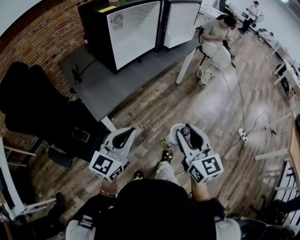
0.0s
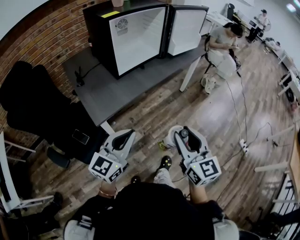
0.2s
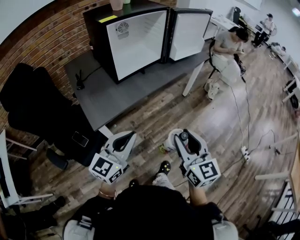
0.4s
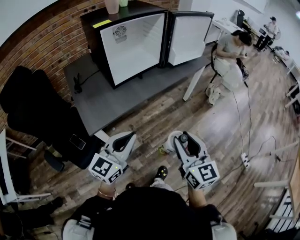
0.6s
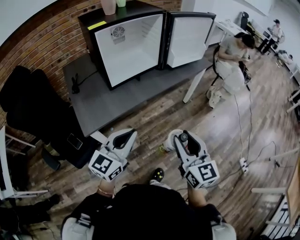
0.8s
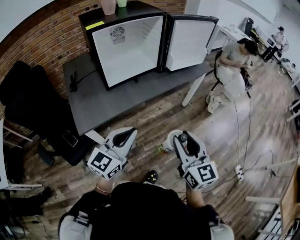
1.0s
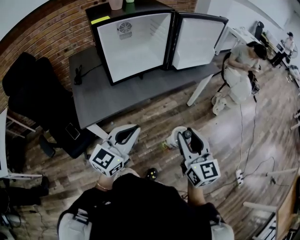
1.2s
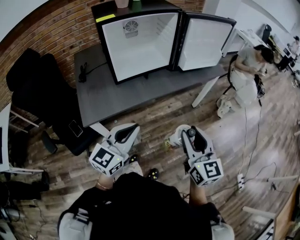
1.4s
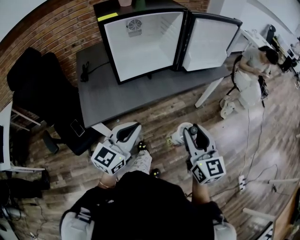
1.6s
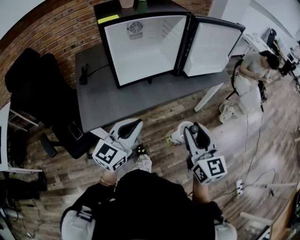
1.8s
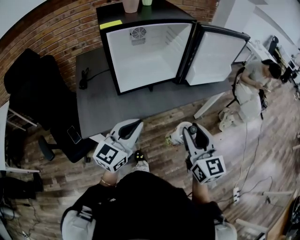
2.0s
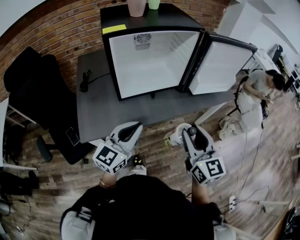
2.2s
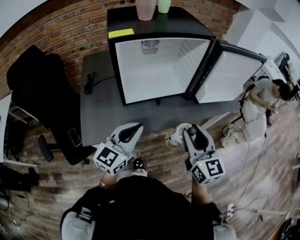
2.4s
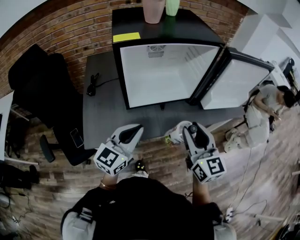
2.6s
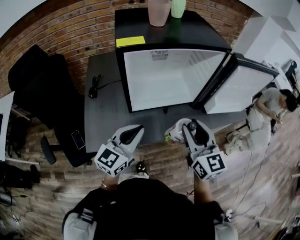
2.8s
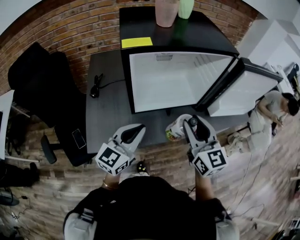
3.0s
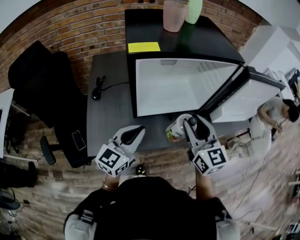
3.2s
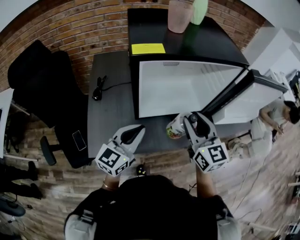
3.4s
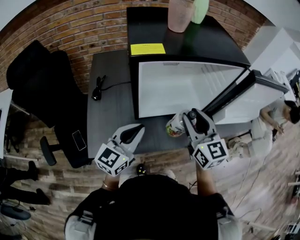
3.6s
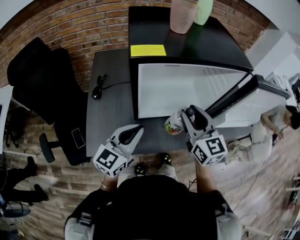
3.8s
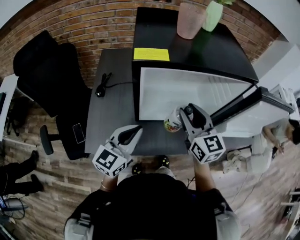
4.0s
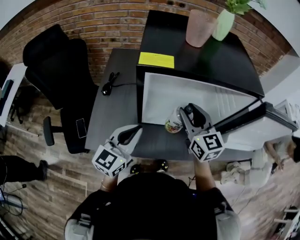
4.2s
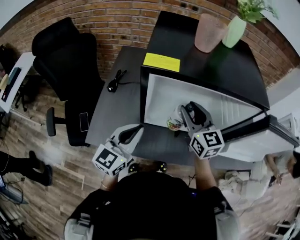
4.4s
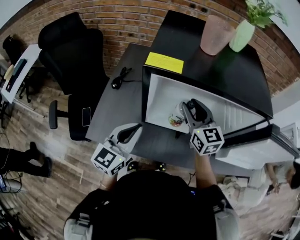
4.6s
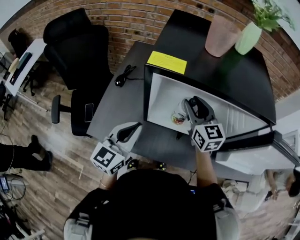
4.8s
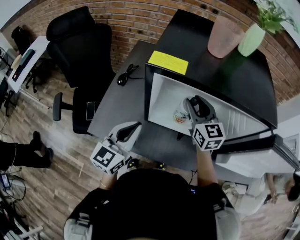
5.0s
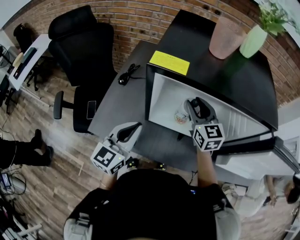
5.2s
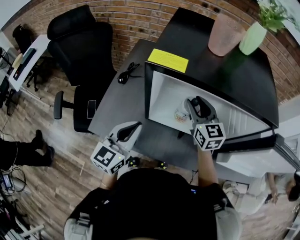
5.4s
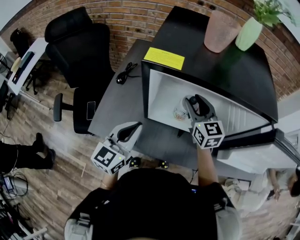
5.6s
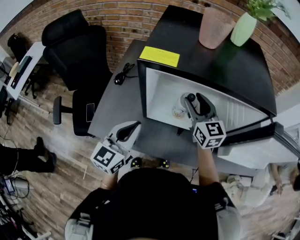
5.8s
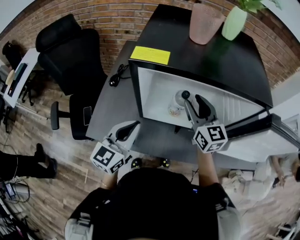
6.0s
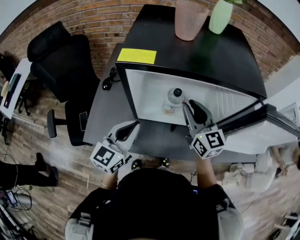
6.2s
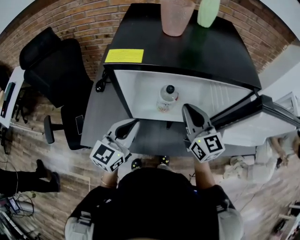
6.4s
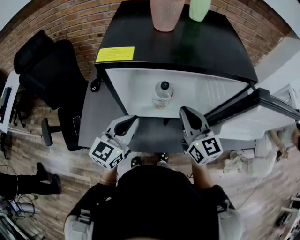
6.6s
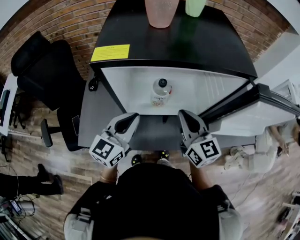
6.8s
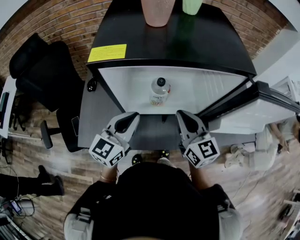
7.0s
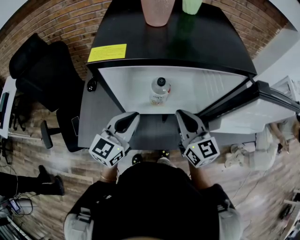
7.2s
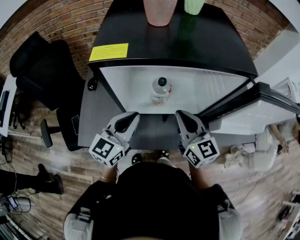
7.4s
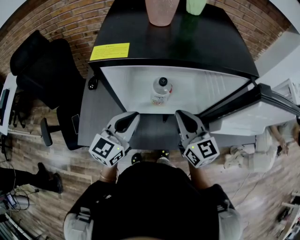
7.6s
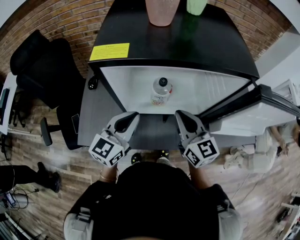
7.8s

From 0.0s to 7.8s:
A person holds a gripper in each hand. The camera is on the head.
From 0.0s to 1.6s: The two grippers go roughly 25 cm forward and to the right.
From 1.6s to 3.2s: Both grippers travel together forward and to the left, about 30 cm.
From 3.2s to 4.6s: The right gripper is displaced forward by approximately 20 cm, and turns by approximately 20 degrees. The left gripper moves about 5 cm, and turns by approximately 20 degrees.
From 4.6s to 6.2s: The right gripper changes place by approximately 5 cm.
From 6.2s to 7.8s: The right gripper goes about 5 cm backward, and closes its fingers; the left gripper changes place by approximately 5 cm.

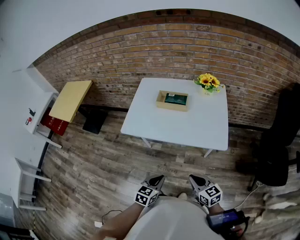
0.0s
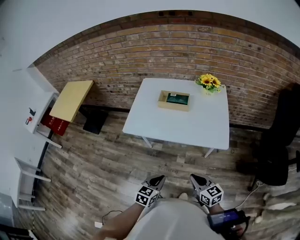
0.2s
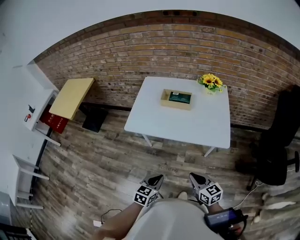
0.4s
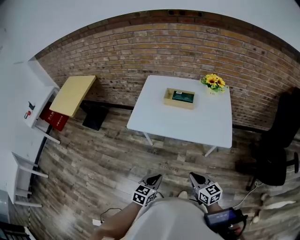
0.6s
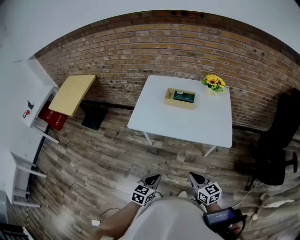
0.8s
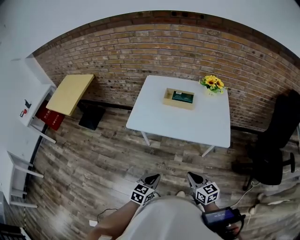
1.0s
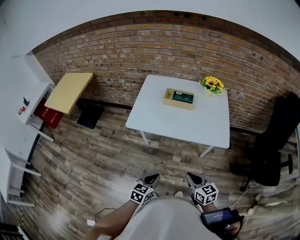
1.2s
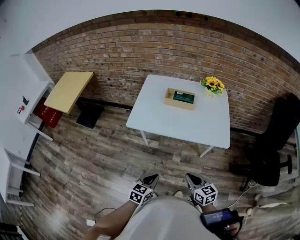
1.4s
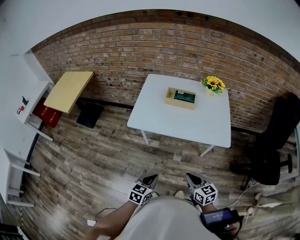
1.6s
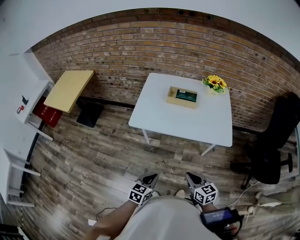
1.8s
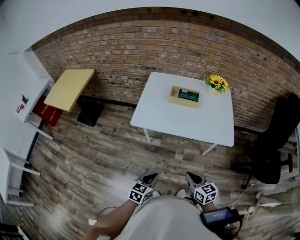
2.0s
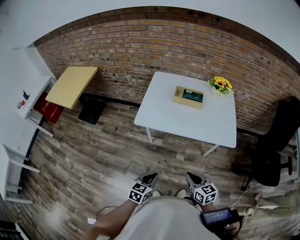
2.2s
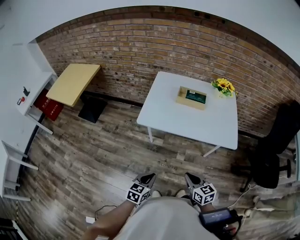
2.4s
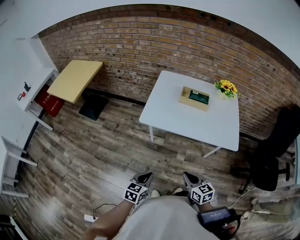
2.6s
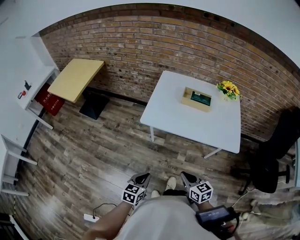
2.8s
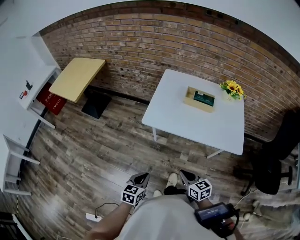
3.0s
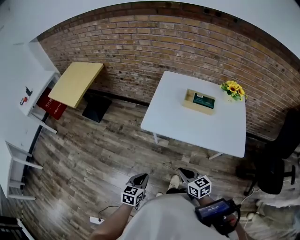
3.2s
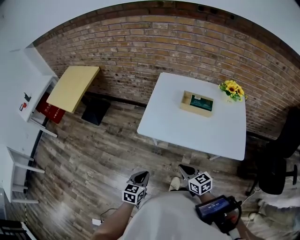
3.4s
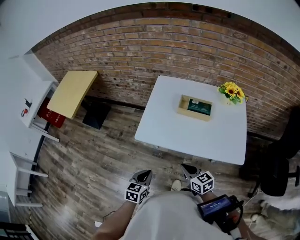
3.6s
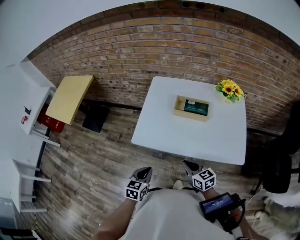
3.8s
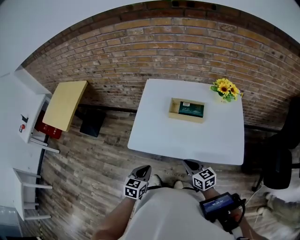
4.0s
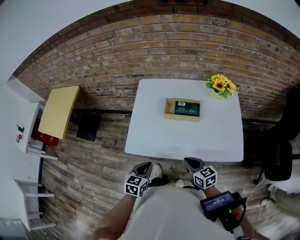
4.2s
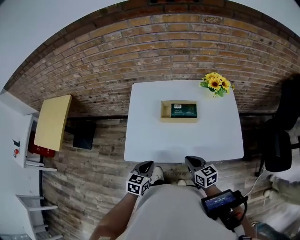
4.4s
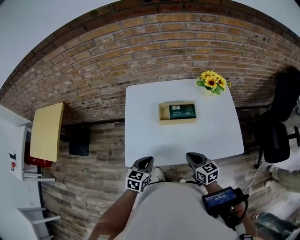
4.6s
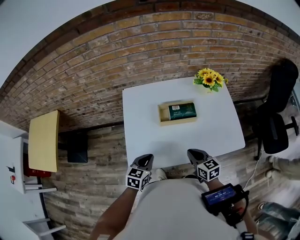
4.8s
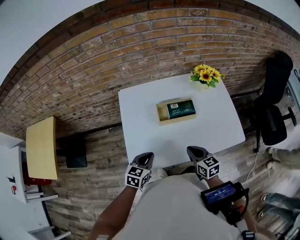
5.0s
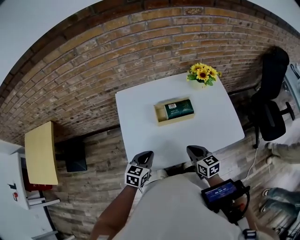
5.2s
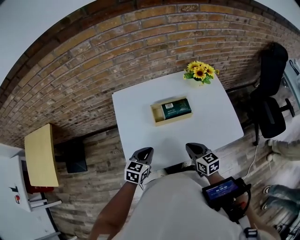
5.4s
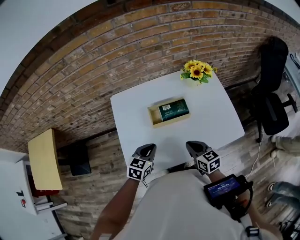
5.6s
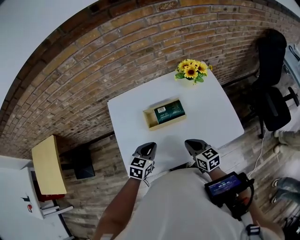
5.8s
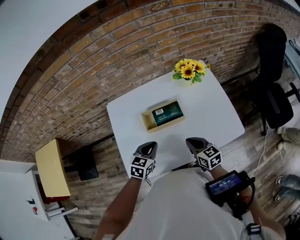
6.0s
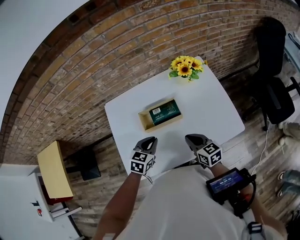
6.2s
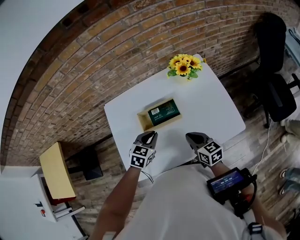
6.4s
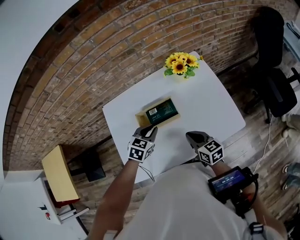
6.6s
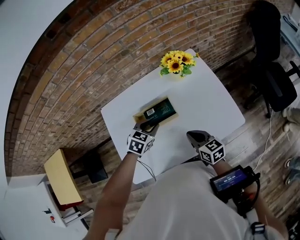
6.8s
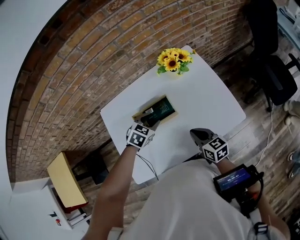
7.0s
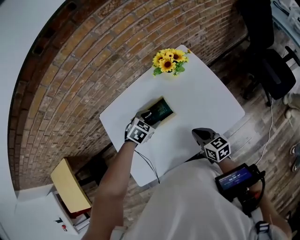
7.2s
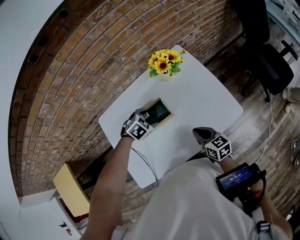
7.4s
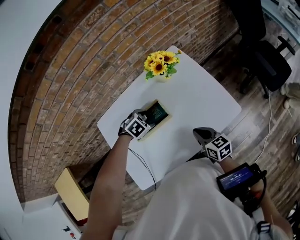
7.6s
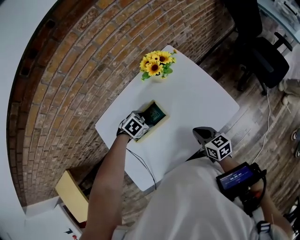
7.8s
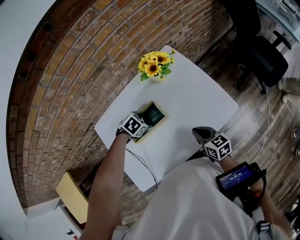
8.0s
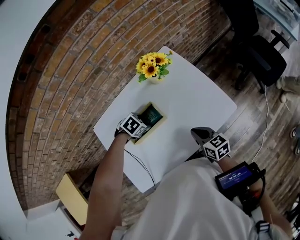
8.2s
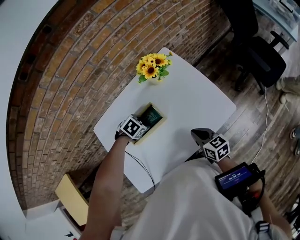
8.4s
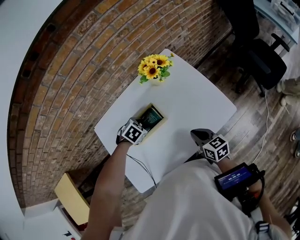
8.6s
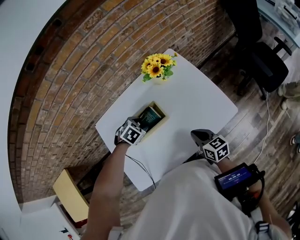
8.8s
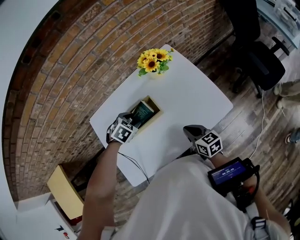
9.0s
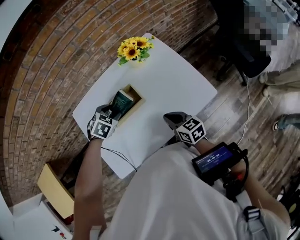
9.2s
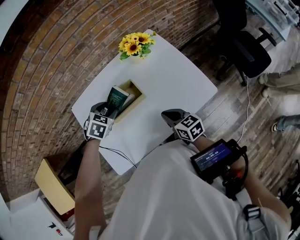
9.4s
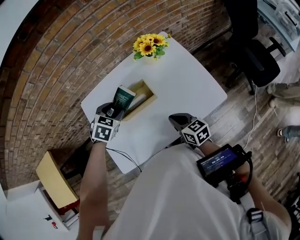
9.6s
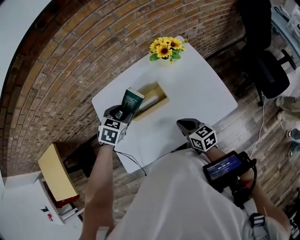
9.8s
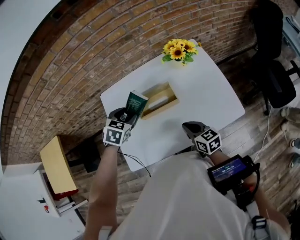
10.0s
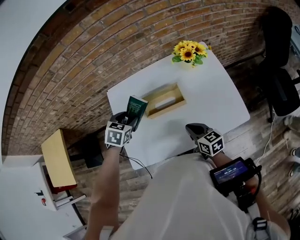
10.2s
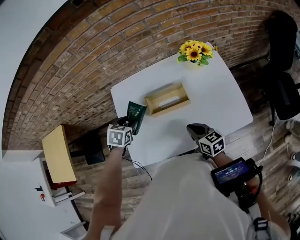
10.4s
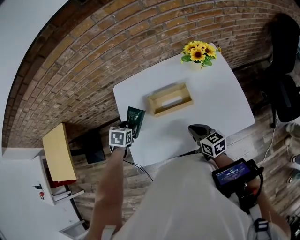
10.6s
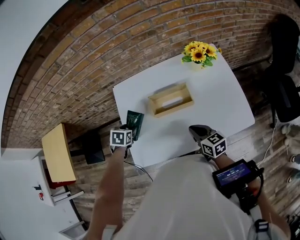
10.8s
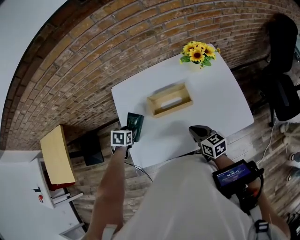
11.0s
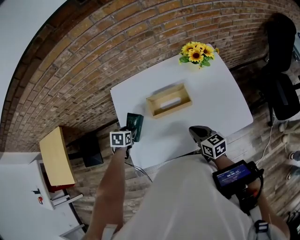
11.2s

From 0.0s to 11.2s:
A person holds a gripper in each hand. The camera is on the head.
From 0.0s to 1.6s: The grippers both shift to the left by about 10 cm.
From 1.6s to 3.2s: The left gripper goes roughly 15 cm to the left, while the right gripper shifts approximately 15 cm to the left and forward.
From 3.2s to 4.8s: The right gripper moves roughly 25 cm, and rotates some 30 degrees; the left gripper shifts by some 35 cm, and turns by roughly 30 degrees.
From 4.8s to 6.4s: The left gripper shifts some 20 cm forward and to the right, and rotates about 20 degrees. Meanwhile the right gripper moves forward and to the right, roughly 10 cm.
From 6.4s to 8.0s: The right gripper moves approximately 10 cm; the left gripper moves about 15 cm, angles its fingers downward, by about 30 degrees, and opens its fingers.
From 8.0s to 9.6s: The left gripper travels upward by some 10 cm, and swivels approximately 30 degrees. Meanwhile the right gripper moves some 5 cm.
From 9.6s to 11.2s: The left gripper moves to the left and downward, roughly 25 cm, and twists some 40 degrees counterclockwise, seen from behind, while the right gripper heads to the left, covering about 5 cm.

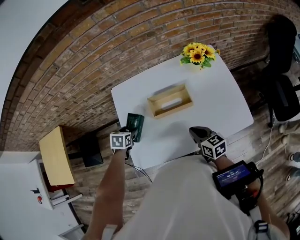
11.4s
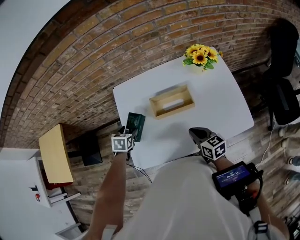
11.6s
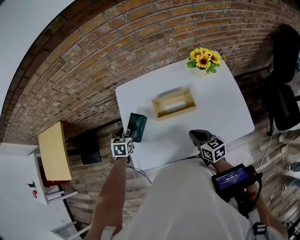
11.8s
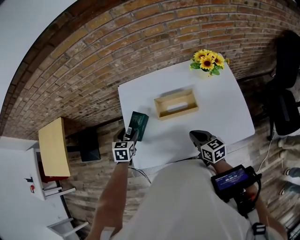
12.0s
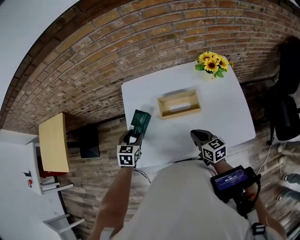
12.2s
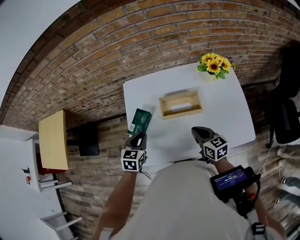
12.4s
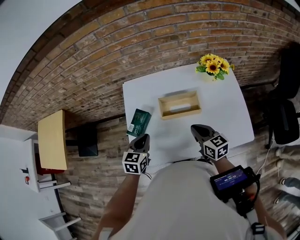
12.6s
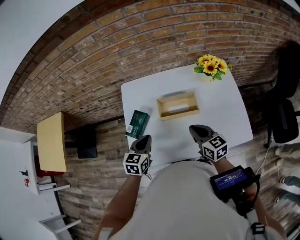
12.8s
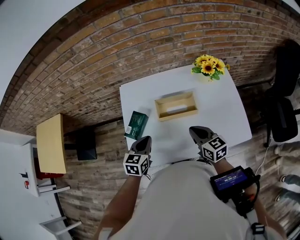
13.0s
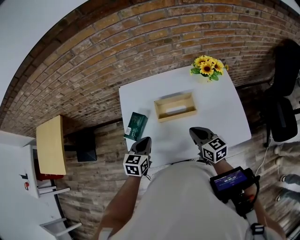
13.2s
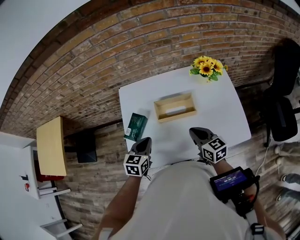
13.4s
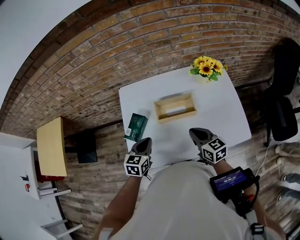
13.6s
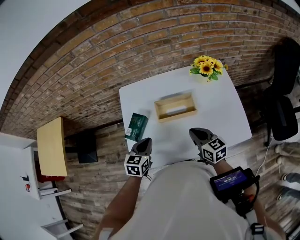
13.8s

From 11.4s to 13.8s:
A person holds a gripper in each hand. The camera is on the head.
From 11.4s to 12.6s: The right gripper ends up about 5 cm from where it was. Meanwhile the left gripper moves upward, backward and to the right, about 15 cm, changes its angle by about 30 degrees, and closes up.
From 12.6s to 13.8s: The grippers make only small movements.

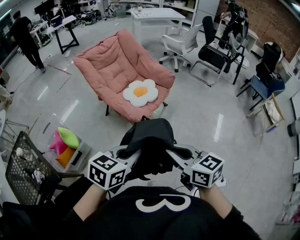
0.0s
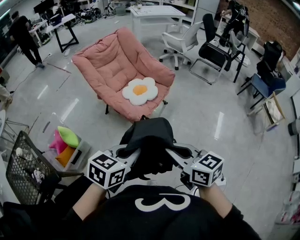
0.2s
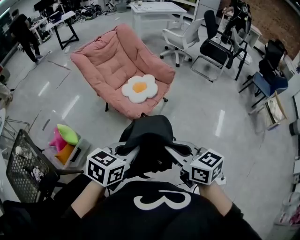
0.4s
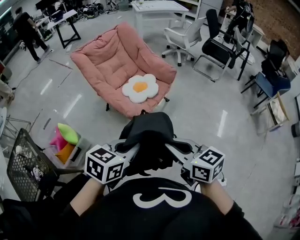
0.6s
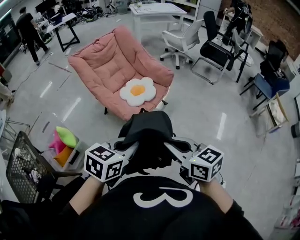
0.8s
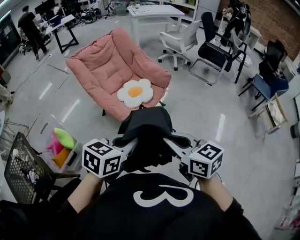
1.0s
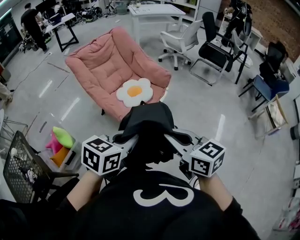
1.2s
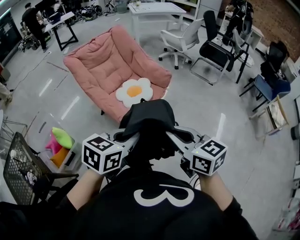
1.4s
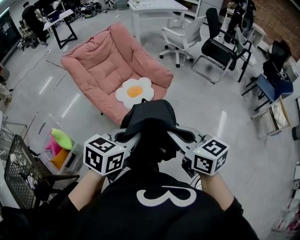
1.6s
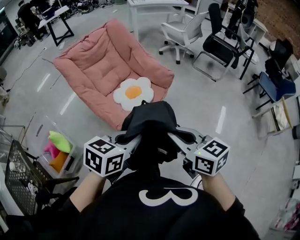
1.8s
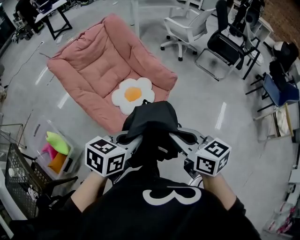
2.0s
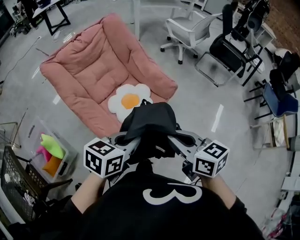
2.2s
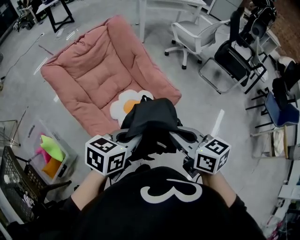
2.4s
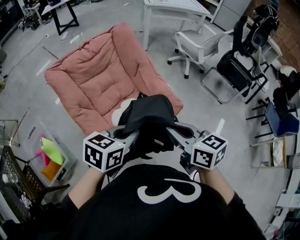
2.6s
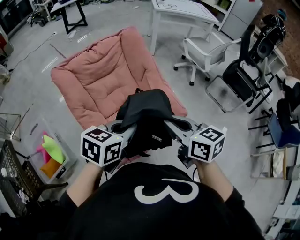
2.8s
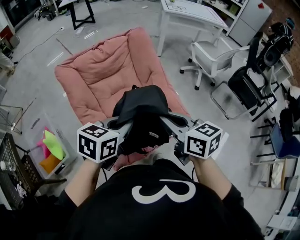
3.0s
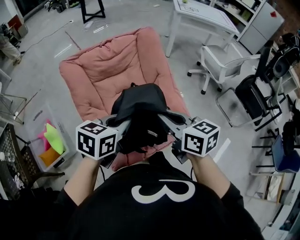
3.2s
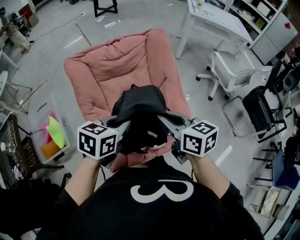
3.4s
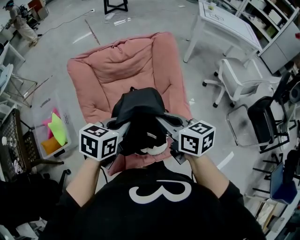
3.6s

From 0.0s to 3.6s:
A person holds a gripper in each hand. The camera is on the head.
From 0.0s to 1.8s: Both grippers move forward, some 25 cm.
From 1.8s to 3.6s: Both grippers are carried roughly 50 cm. The left gripper changes its angle by approximately 40 degrees; the right gripper turns by approximately 30 degrees.
